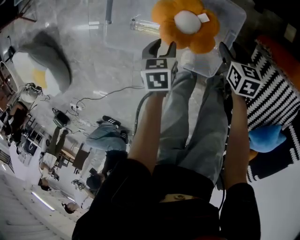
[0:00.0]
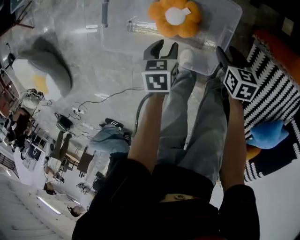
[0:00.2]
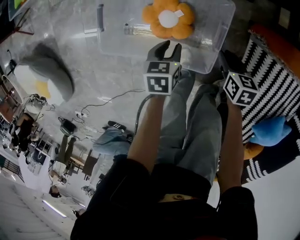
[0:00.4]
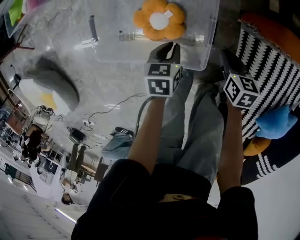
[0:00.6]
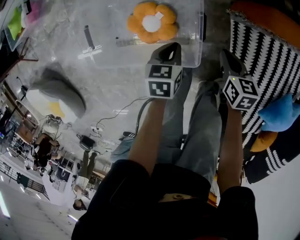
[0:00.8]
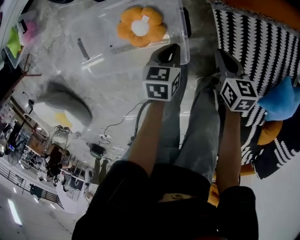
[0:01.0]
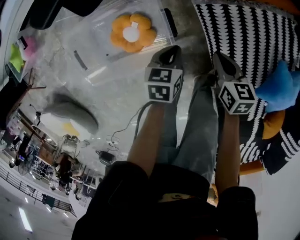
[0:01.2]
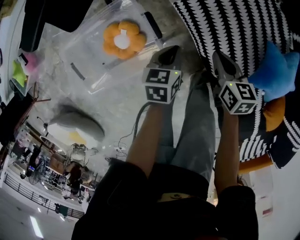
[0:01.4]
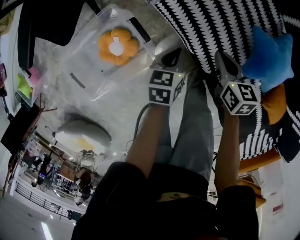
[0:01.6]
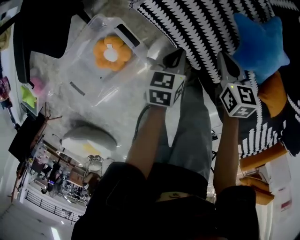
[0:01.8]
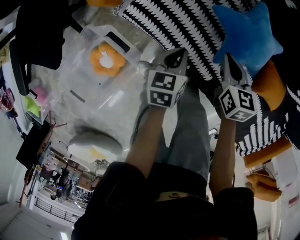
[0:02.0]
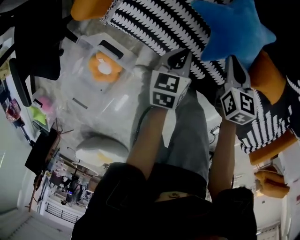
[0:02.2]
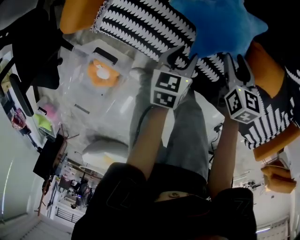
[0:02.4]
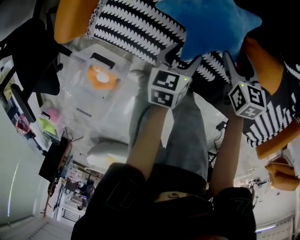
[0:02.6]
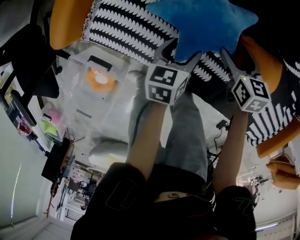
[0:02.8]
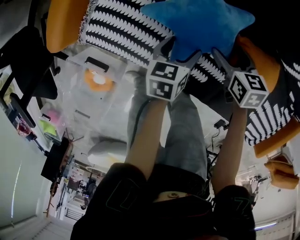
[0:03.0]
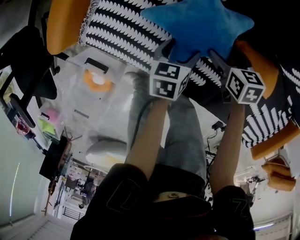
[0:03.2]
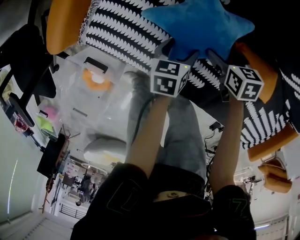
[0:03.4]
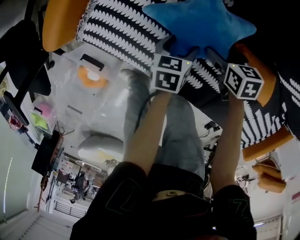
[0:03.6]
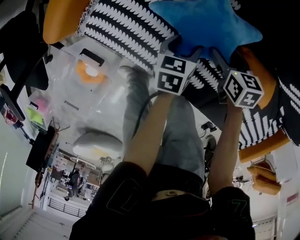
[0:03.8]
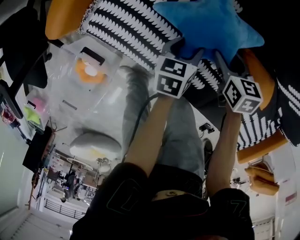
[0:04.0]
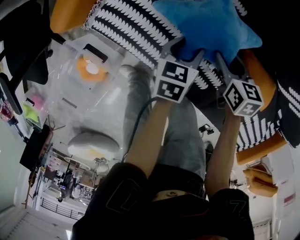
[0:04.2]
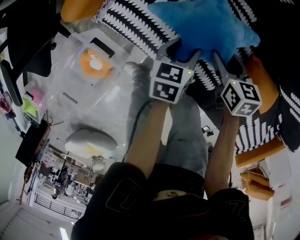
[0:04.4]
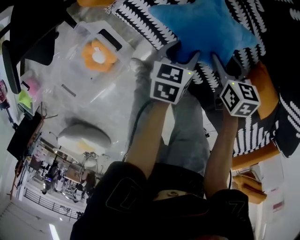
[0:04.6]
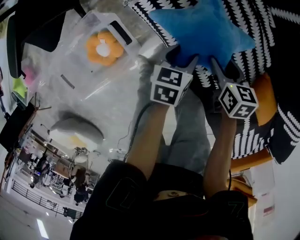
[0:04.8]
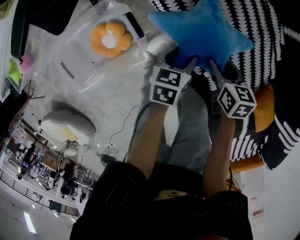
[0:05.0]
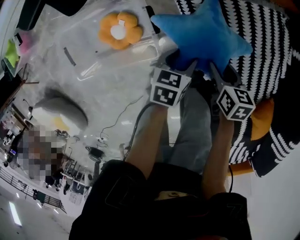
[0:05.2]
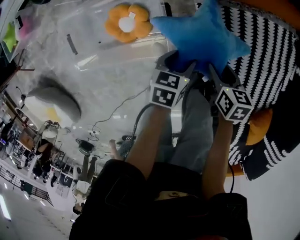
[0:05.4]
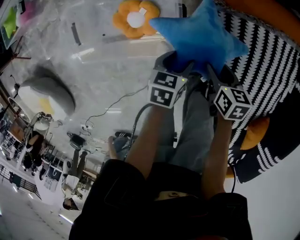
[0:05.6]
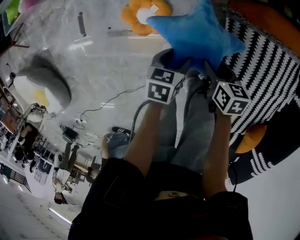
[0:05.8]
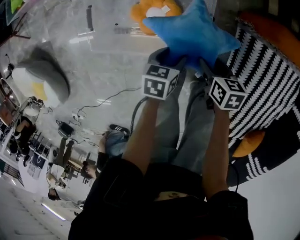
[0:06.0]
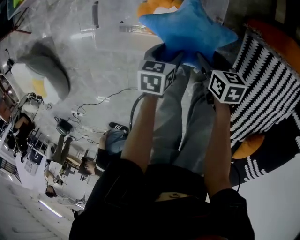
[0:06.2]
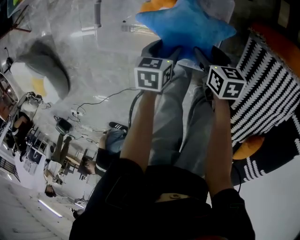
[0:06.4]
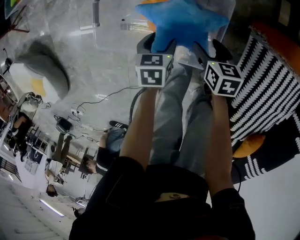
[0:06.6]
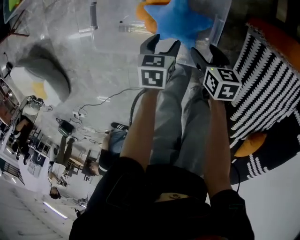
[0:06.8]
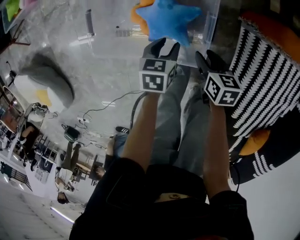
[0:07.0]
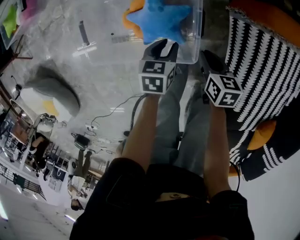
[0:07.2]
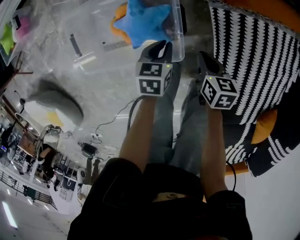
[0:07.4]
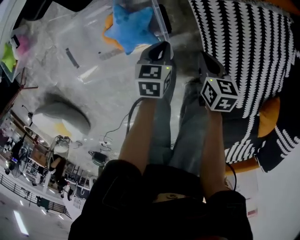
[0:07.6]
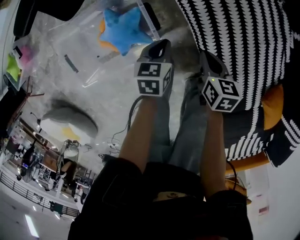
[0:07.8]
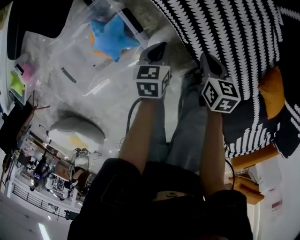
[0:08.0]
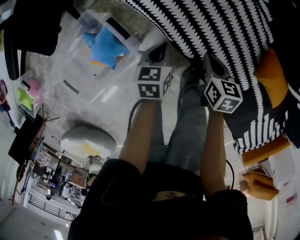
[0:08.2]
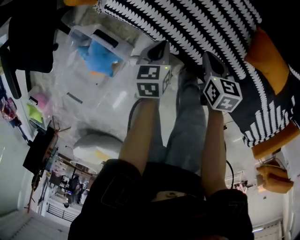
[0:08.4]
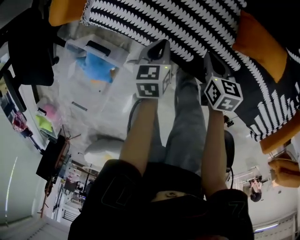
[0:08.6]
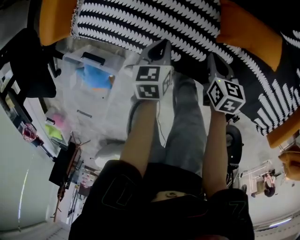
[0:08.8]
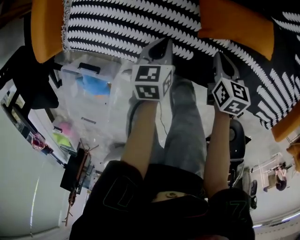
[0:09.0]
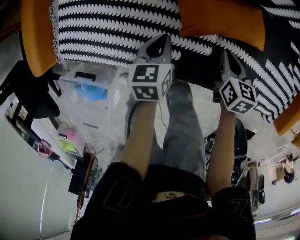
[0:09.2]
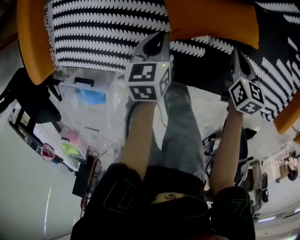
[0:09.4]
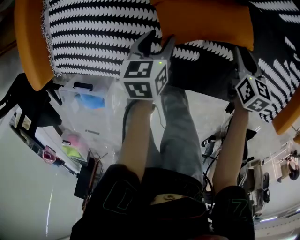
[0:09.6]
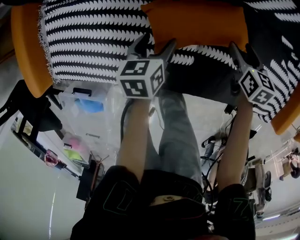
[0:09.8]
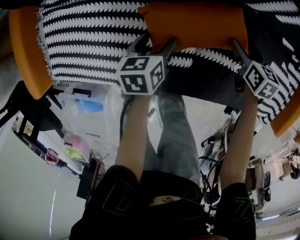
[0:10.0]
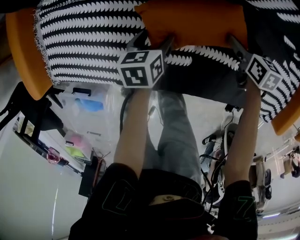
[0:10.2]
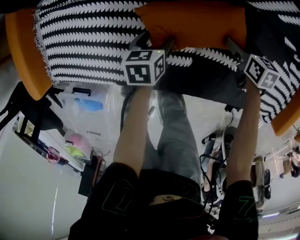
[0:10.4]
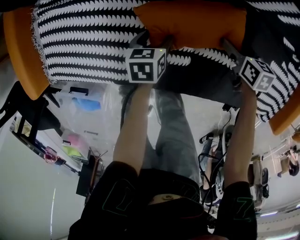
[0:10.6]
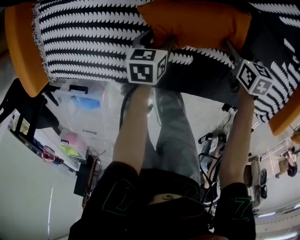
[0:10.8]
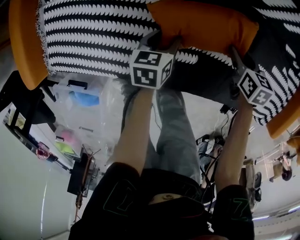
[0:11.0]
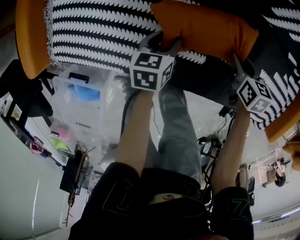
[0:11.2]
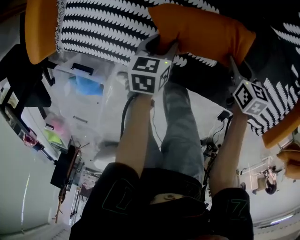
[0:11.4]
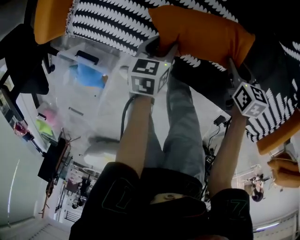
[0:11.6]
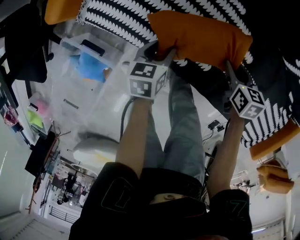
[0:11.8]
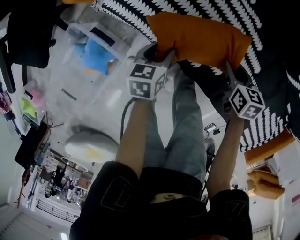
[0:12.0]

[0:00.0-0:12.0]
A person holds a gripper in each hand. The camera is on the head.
0:00.0 to 0:01.6: Both grippers are carried approximately 50 cm. The left gripper turns by some 60 degrees, and closes its fingers; the right gripper changes its angle by about 50 degrees, and closes its fingers.
0:01.6 to 0:03.0: The left gripper moves about 35 cm, changes its angle by about 30 degrees, and opens, while the right gripper ends up some 35 cm from where it was, swivels approximately 20 degrees, and opens.
0:03.0 to 0:04.4: The grippers both shift to the left by roughly 10 cm. The right gripper closes its fingers.
0:04.4 to 0:06.0: The two grippers travel together, approximately 50 cm. The right gripper rotates approximately 50 degrees; the left gripper twists about 40 degrees counterclockwise, seen from behind.
0:06.0 to 0:07.6: The right gripper shifts by some 15 cm, swivels approximately 30 degrees, and closes up; the left gripper changes place by approximately 15 cm, and closes up.
0:07.6 to 0:09.0: The two grippers travel together, some 50 cm. The right gripper swivels approximately 60 degrees. The left gripper turns by roughly 50 degrees.
0:09.0 to 0:10.4: The left gripper moves forward, to the right and downward, some 15 cm, and opens its fingers; the right gripper goes about 25 cm to the right and forward, and opens up.
0:10.4 to 0:12.0: The left gripper shifts by approximately 35 cm, swivels roughly 30 degrees, and closes its fingers. The right gripper ends up about 35 cm from where it was, swivels approximately 30 degrees, and closes up.

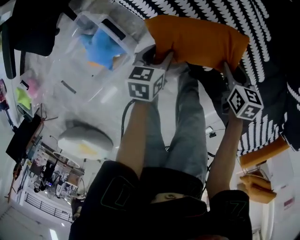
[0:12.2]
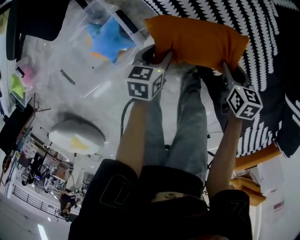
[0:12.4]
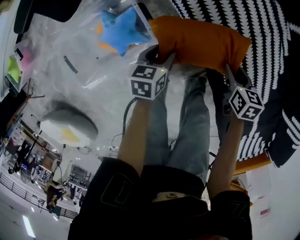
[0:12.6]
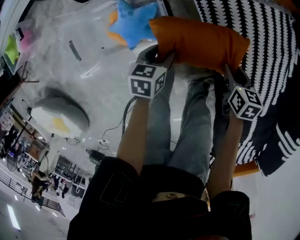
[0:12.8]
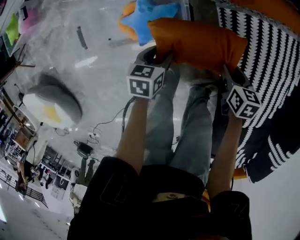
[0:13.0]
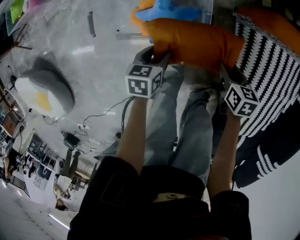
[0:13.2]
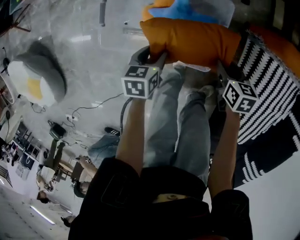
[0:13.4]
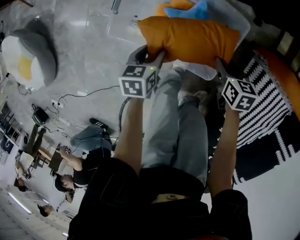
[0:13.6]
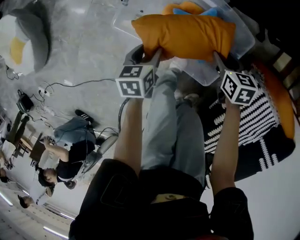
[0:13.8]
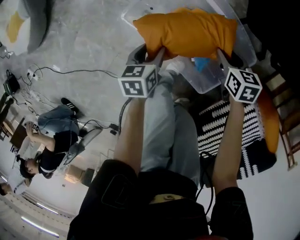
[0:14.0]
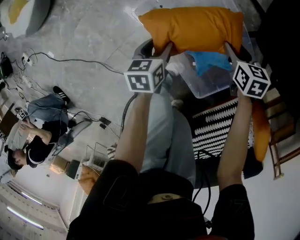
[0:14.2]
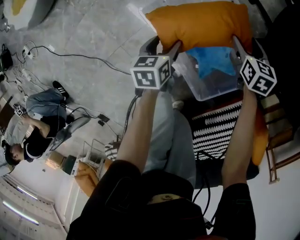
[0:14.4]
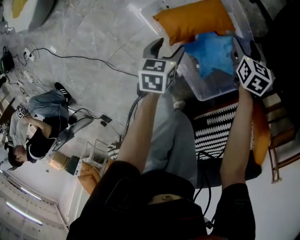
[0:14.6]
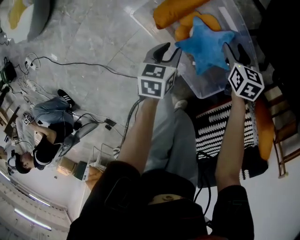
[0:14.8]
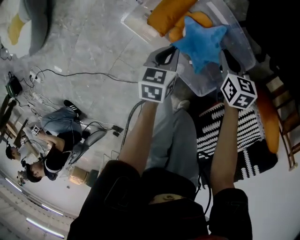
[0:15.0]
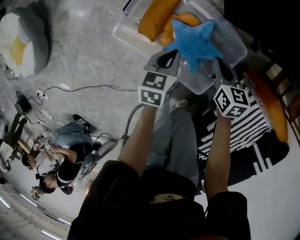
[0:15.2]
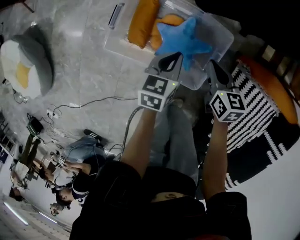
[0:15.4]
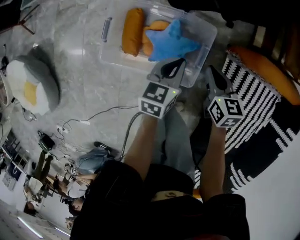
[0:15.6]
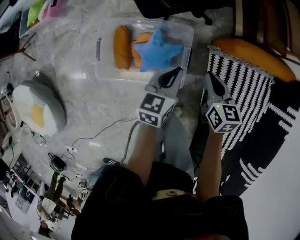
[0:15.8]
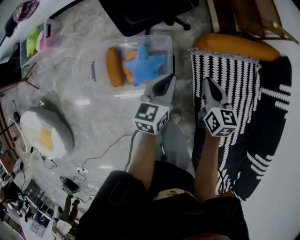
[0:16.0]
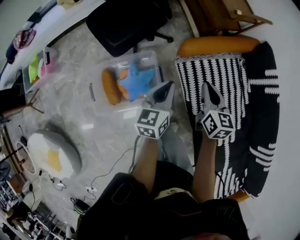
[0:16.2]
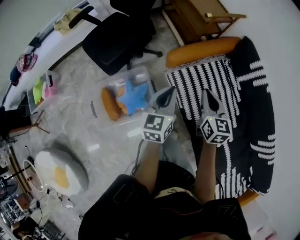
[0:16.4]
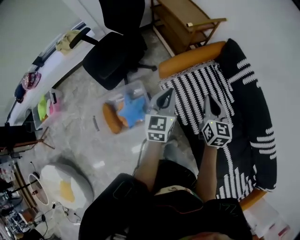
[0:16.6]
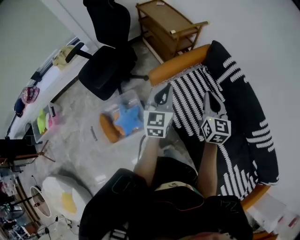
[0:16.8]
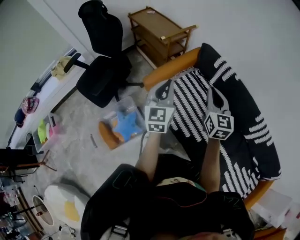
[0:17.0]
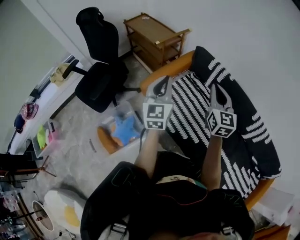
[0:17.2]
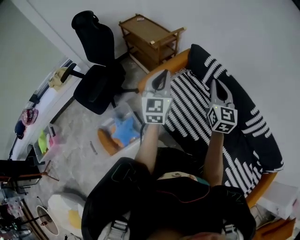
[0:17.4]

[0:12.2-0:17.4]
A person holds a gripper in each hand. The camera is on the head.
0:12.2 to 0:14.0: The two grippers travel together, approximately 60 cm. The right gripper rolls counterclockwise, seen from behind, by some 70 degrees. Meanwhile the left gripper turns by approximately 90 degrees.
0:14.0 to 0:15.6: The left gripper ends up approximately 30 cm from where it was, changes its angle by some 50 degrees, and closes. Meanwhile the right gripper moves upward, about 15 cm, changes its angle by about 40 degrees, and closes its fingers.
0:15.6 to 0:17.4: Both grippers are carried about 50 cm. The right gripper tilts its fingers approximately 40 degrees upward. Meanwhile the left gripper moves upward, some 50 cm, and tilts its fingers approximately 40 degrees upward.

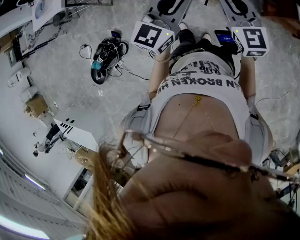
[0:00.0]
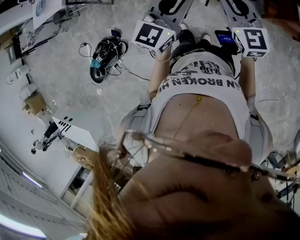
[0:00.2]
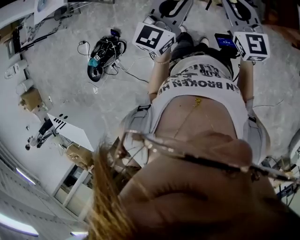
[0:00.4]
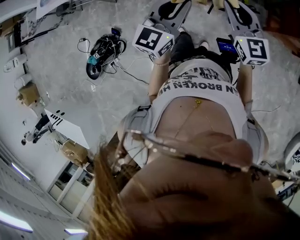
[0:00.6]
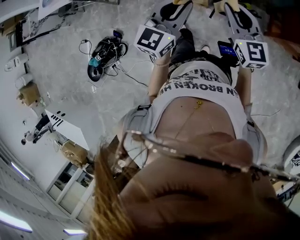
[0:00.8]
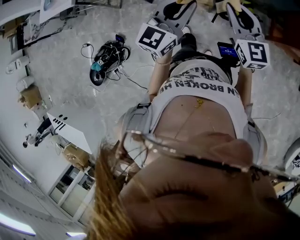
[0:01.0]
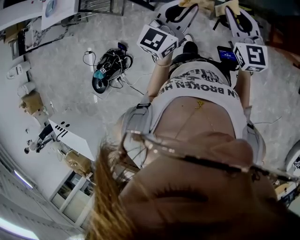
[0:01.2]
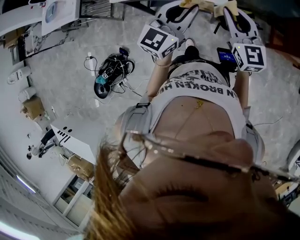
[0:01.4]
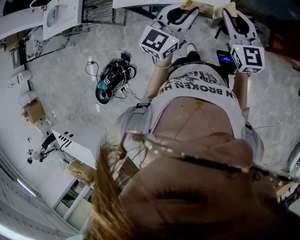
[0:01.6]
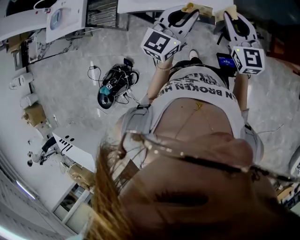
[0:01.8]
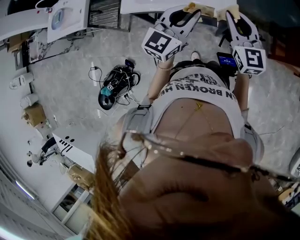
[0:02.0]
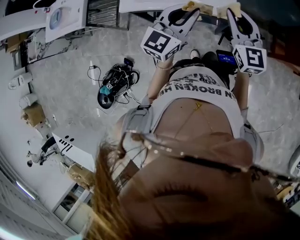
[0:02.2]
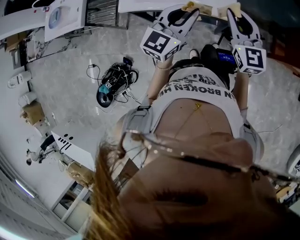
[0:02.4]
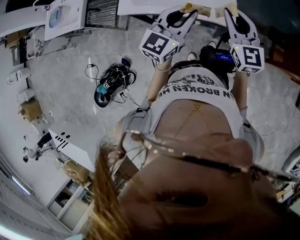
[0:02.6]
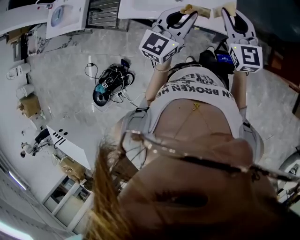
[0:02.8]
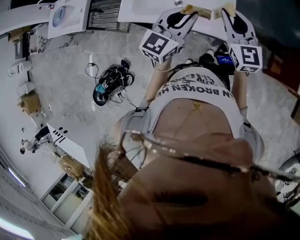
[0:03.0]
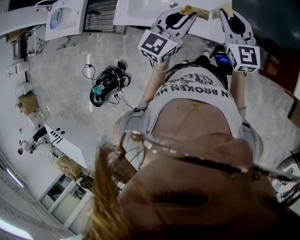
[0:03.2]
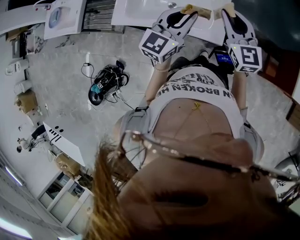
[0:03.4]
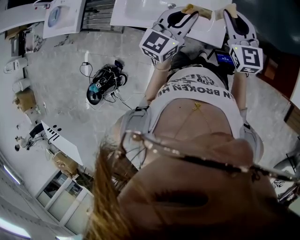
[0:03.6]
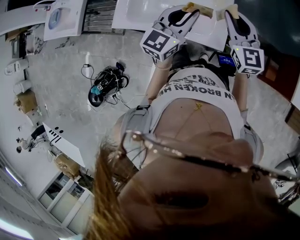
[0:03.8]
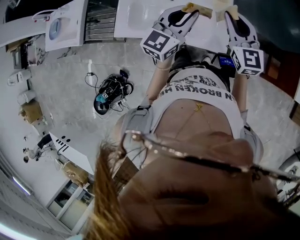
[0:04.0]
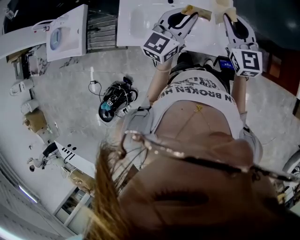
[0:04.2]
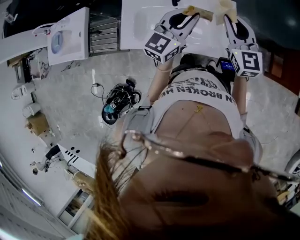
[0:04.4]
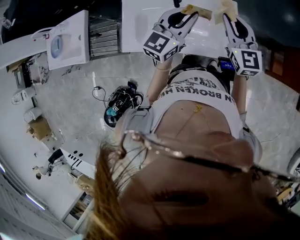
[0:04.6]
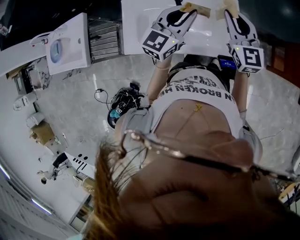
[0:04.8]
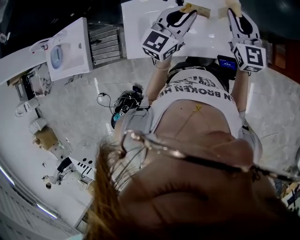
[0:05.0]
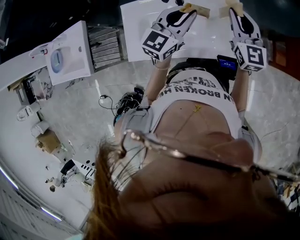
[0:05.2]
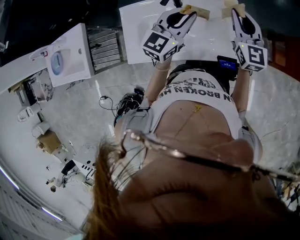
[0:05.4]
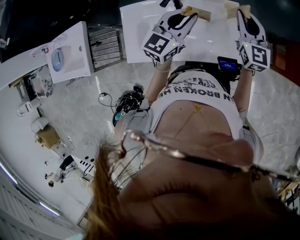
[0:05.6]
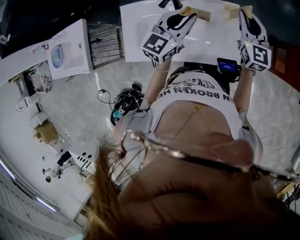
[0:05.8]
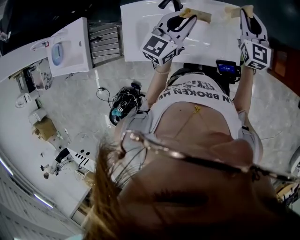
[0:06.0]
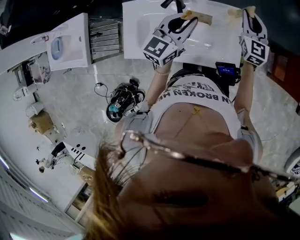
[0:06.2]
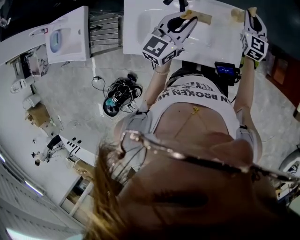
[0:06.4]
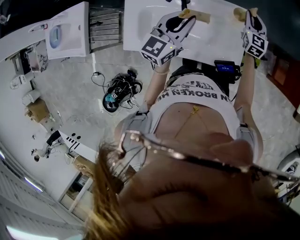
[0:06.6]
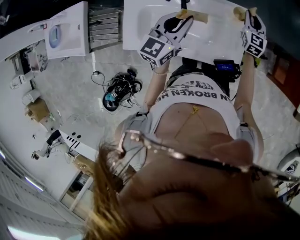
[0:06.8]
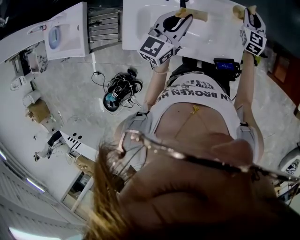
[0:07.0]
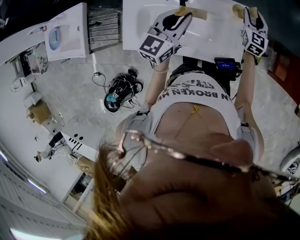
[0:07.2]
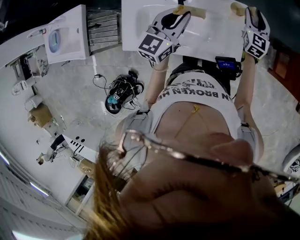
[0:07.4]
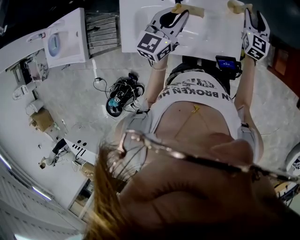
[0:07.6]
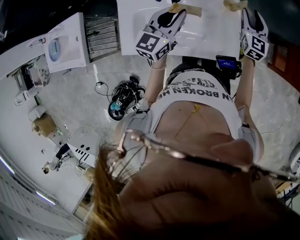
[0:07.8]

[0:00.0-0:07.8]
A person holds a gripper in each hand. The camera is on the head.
0:00.0 to 0:01.6: The two grippers go approximately 20 cm forward and to the left.
0:01.6 to 0:03.2: The two grippers go some 15 cm forward.
0:03.2 to 0:04.6: Both grippers travel together forward and to the left, some 15 cm.
0:04.6 to 0:06.2: The left gripper heads forward, covering some 5 cm; the right gripper moves forward and downward, approximately 15 cm.
0:06.2 to 0:07.8: The right gripper opens its fingers.
